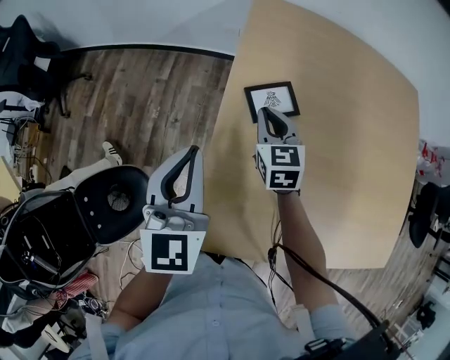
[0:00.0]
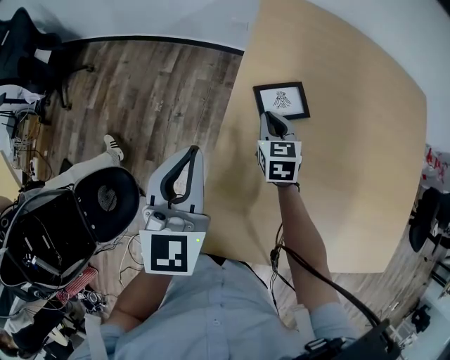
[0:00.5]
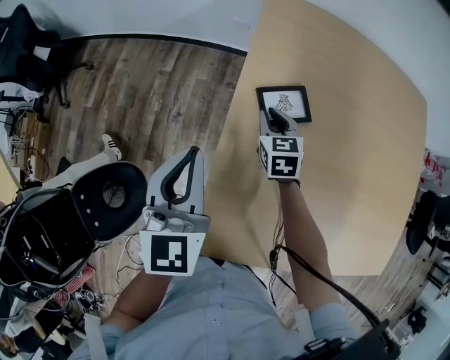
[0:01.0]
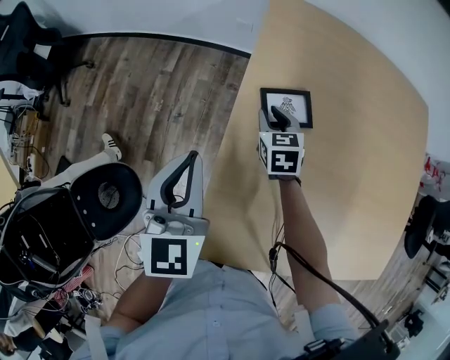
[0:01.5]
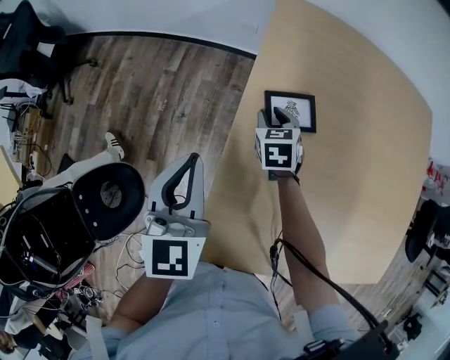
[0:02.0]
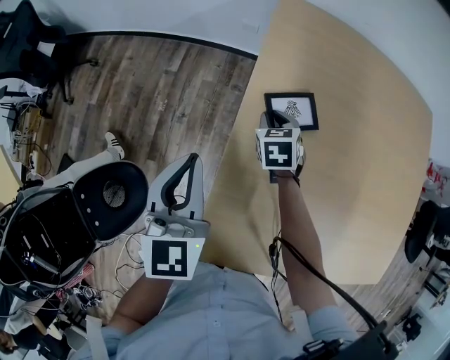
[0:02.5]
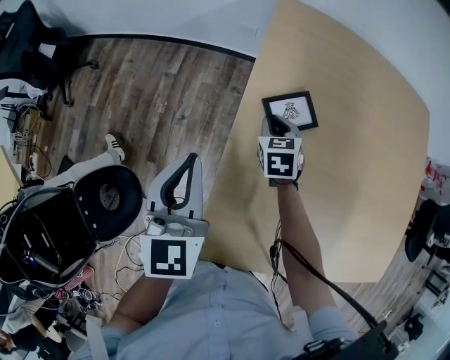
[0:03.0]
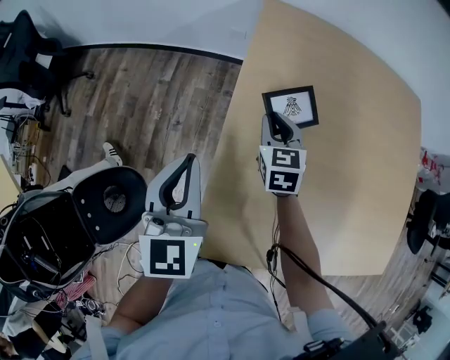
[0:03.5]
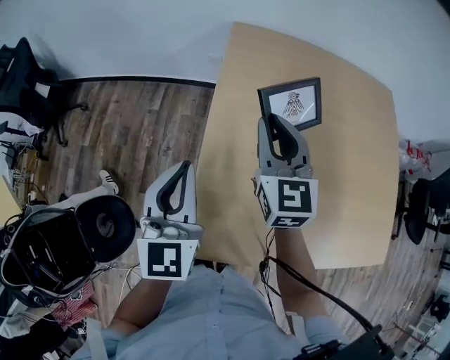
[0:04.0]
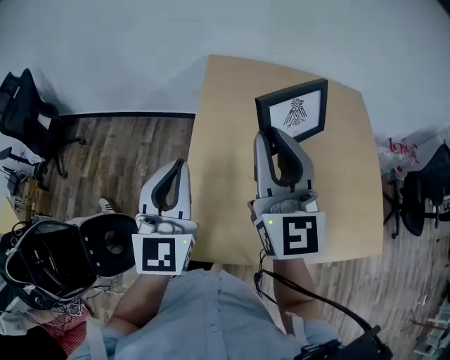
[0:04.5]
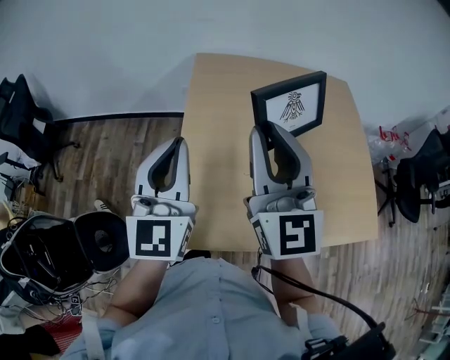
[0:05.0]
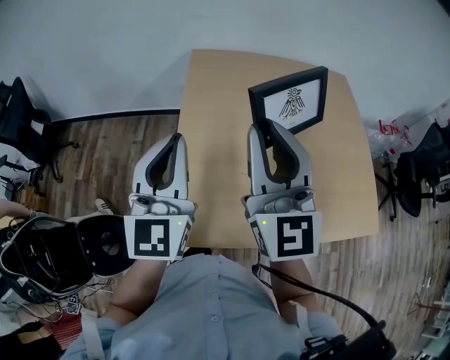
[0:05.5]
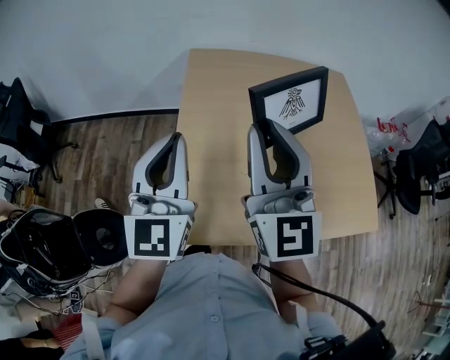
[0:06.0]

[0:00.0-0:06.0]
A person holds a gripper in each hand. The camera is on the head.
0:00.0 to 0:02.0: The right gripper moves downward, about 10 cm, and opens its fingers.
0:02.0 to 0:04.0: The right gripper moves upward, approximately 25 cm, and tips its fingers upward by roughly 40 degrees; the left gripper moves upward, roughly 5 cm.
0:04.0 to 0:06.0: The left gripper shifts about 15 cm upward and to the right, and rotates some 20 degrees, while the right gripper goes approximately 25 cm backward and upward, and turns by about 20 degrees.

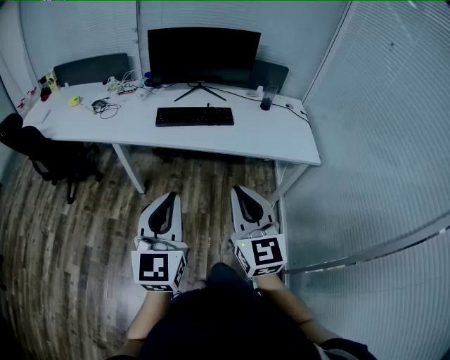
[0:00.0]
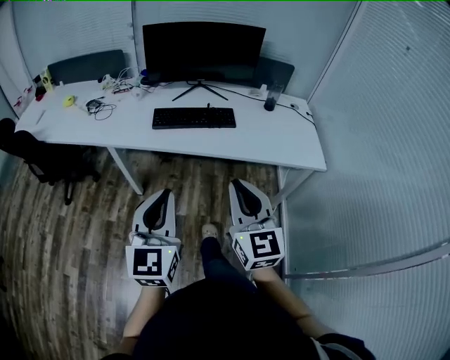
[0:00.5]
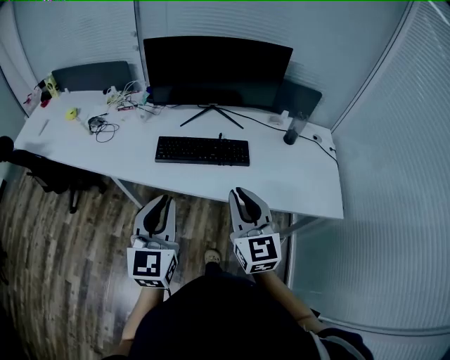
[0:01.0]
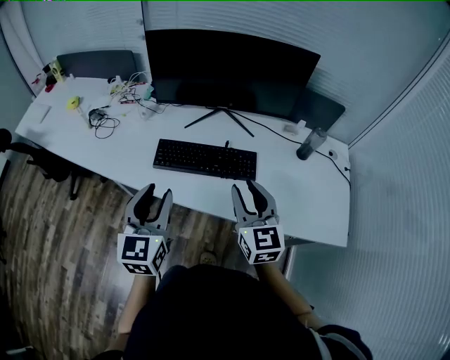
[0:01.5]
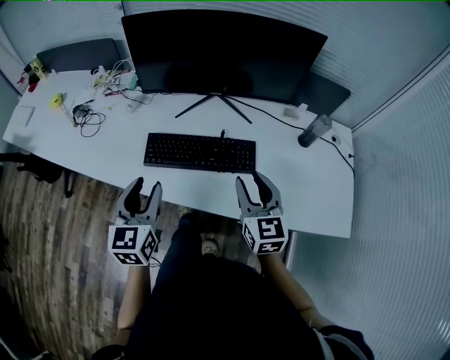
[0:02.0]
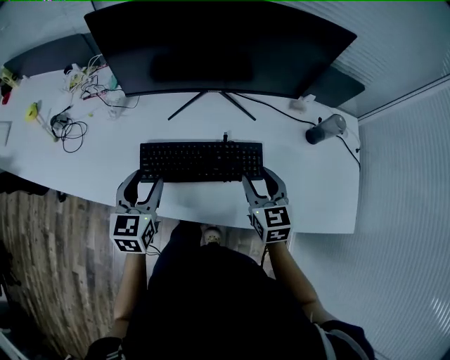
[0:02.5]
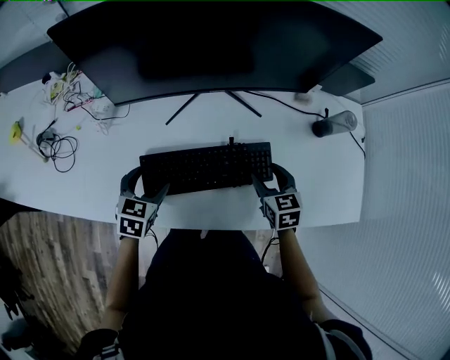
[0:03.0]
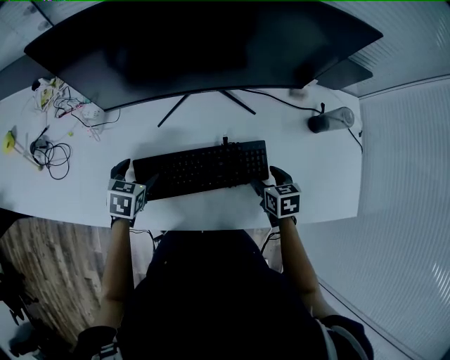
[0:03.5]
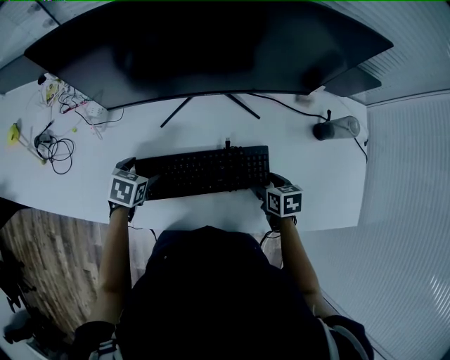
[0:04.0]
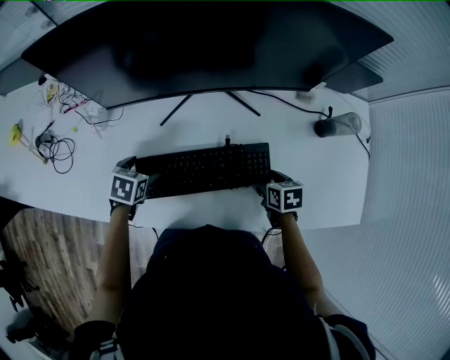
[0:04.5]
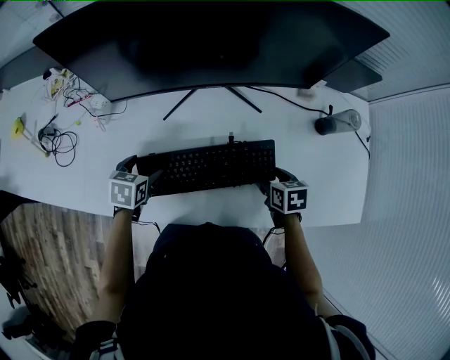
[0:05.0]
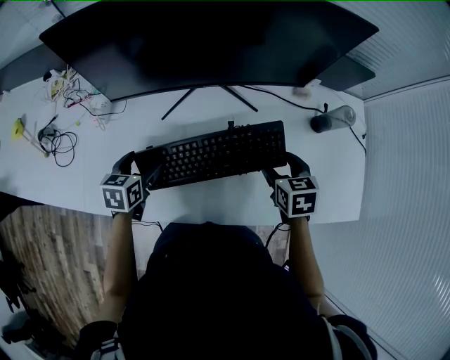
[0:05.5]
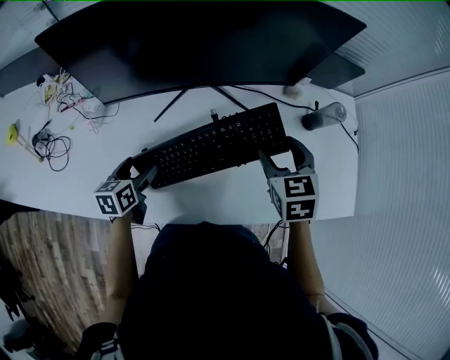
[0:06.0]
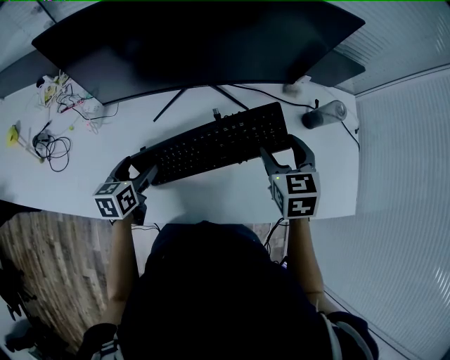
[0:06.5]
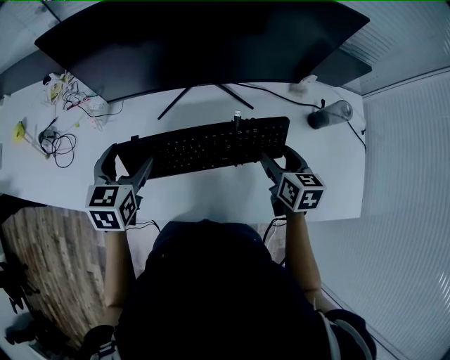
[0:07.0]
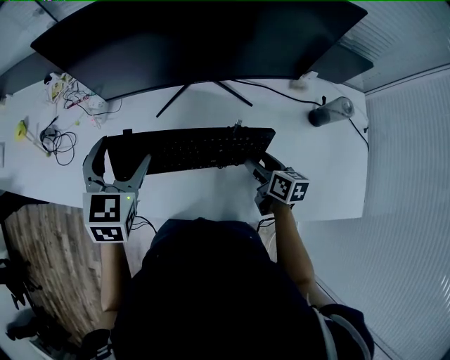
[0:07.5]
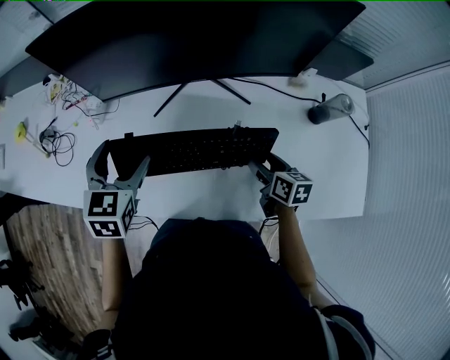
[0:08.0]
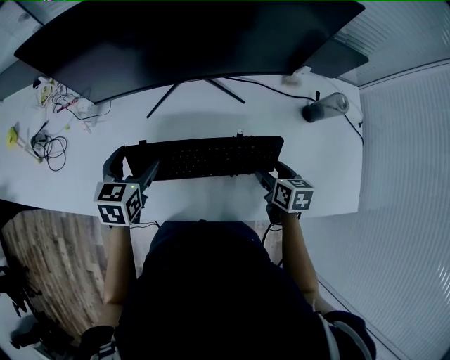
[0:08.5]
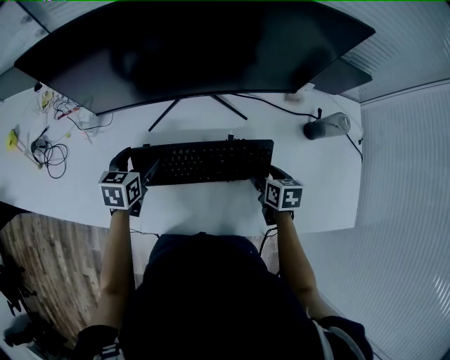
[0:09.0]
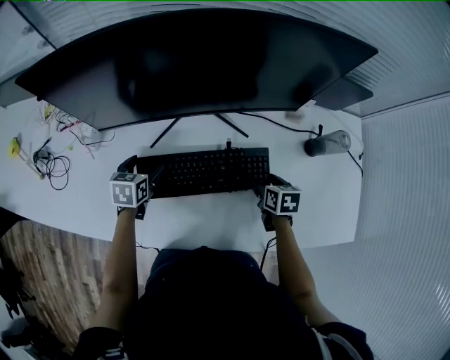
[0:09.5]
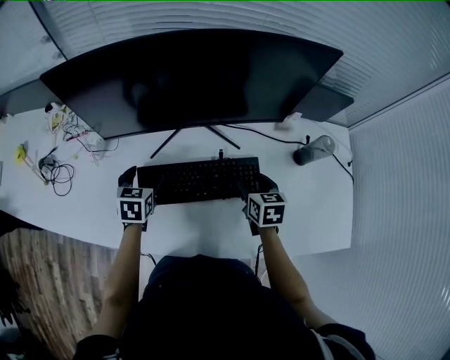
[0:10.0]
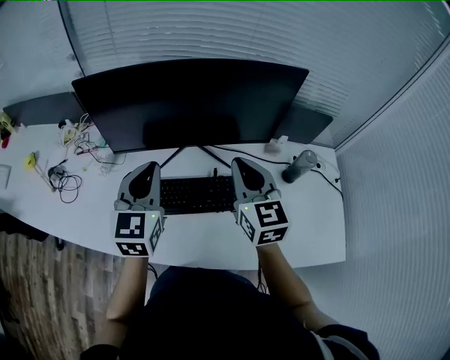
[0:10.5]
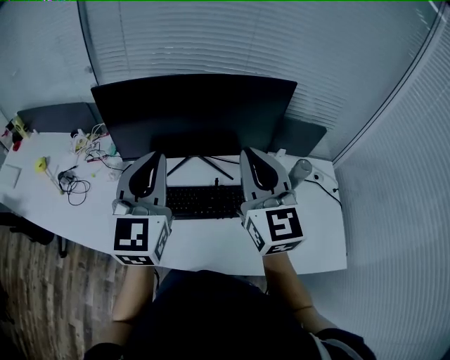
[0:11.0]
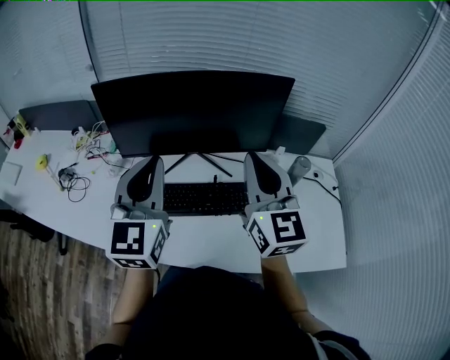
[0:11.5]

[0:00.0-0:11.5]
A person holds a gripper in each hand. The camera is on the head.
0:00.0 to 0:02.0: The pair of grippers is taken forward, some 50 cm. The left gripper rotates roughly 20 degrees. Meanwhile the right gripper opens up.
0:02.0 to 0:04.0: Both grippers move downward and forward, roughly 30 cm. The left gripper tips its fingers downward by about 50 degrees, and opens its fingers; the right gripper angles its fingers downward, by approximately 40 degrees, and opens up.
0:04.0 to 0:06.0: The right gripper is displaced upward by about 20 cm, and changes its angle by some 30 degrees. The left gripper travels upward by some 5 cm, and rotates approximately 30 degrees.
0:06.0 to 0:07.5: The right gripper shifts roughly 15 cm downward, and rotates around the line of its fingers by some 40 degrees, clockwise from behind, while the left gripper goes approximately 20 cm upward, and rotates roughly 40 degrees.
0:07.5 to 0:09.5: The left gripper goes some 20 cm downward, and turns by approximately 30 degrees. The right gripper is displaced to the right and downward by about 5 cm, and swivels some 30 degrees.
0:09.5 to 0:11.5: The two grippers go roughly 40 cm upward. The right gripper angles its fingers upward, by some 60 degrees, and closes its fingers; the left gripper points its fingers about 50 degrees further upward, and closes.

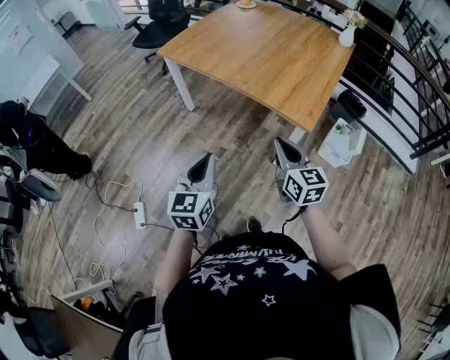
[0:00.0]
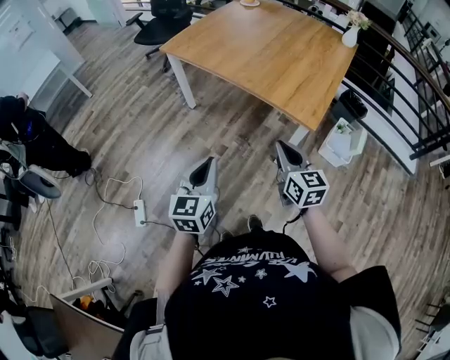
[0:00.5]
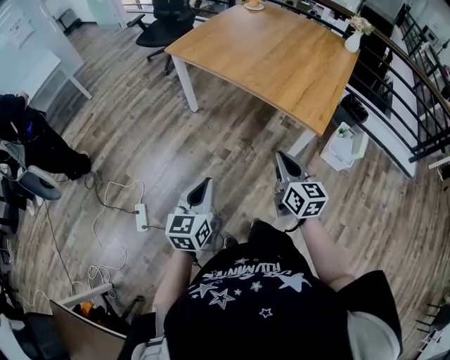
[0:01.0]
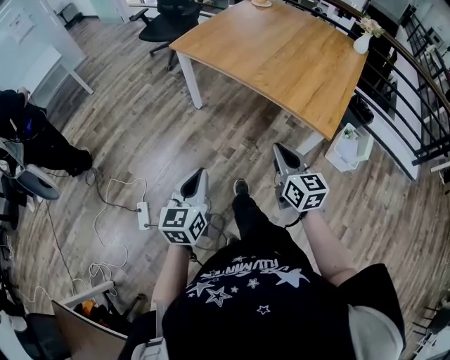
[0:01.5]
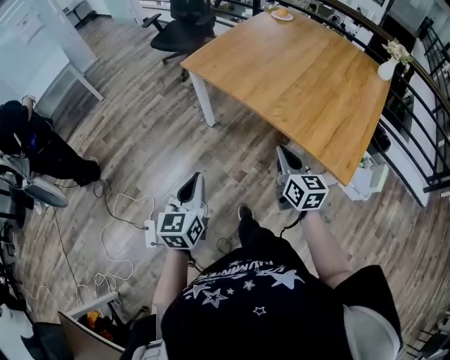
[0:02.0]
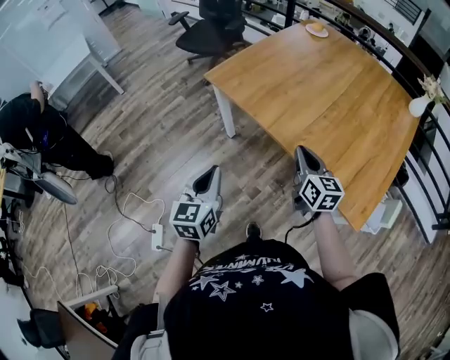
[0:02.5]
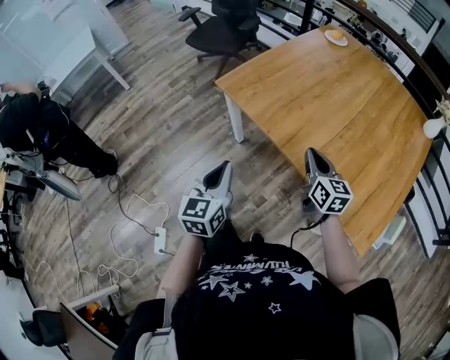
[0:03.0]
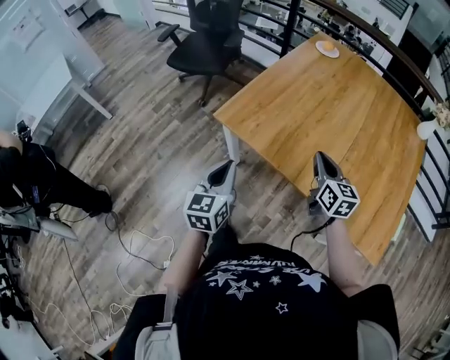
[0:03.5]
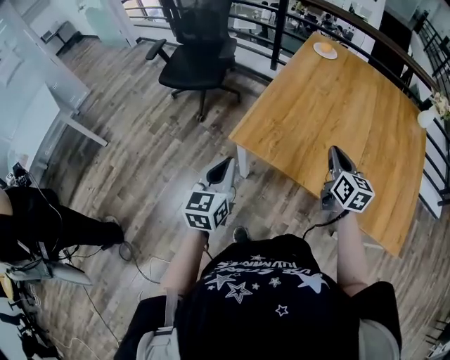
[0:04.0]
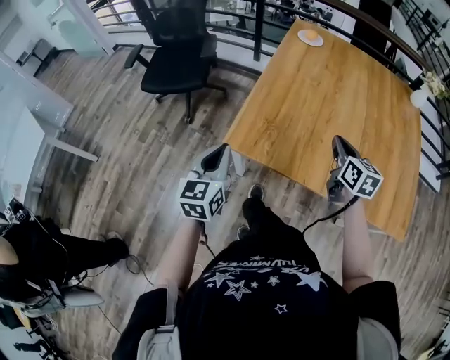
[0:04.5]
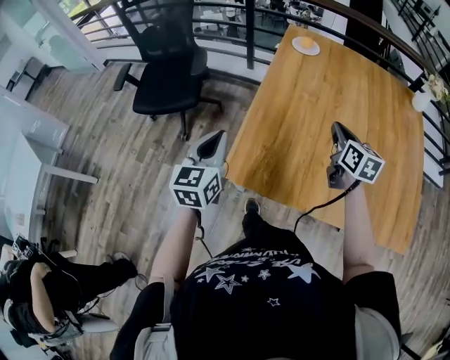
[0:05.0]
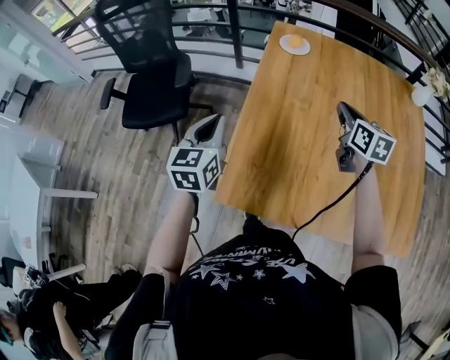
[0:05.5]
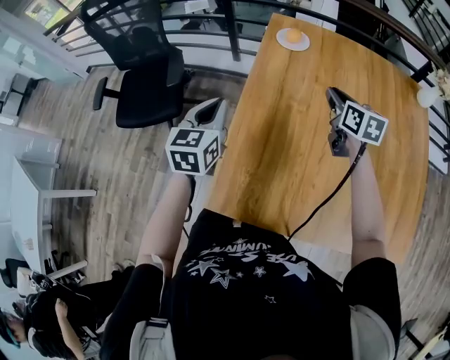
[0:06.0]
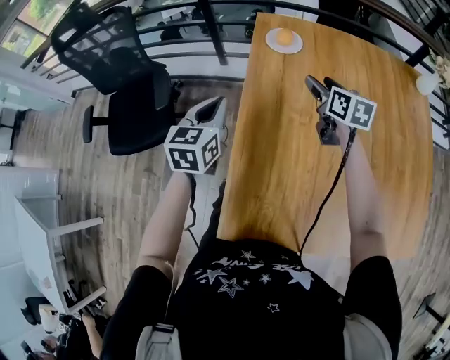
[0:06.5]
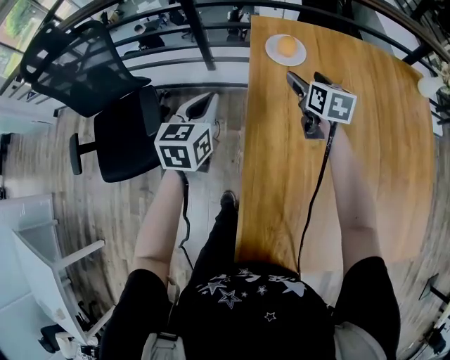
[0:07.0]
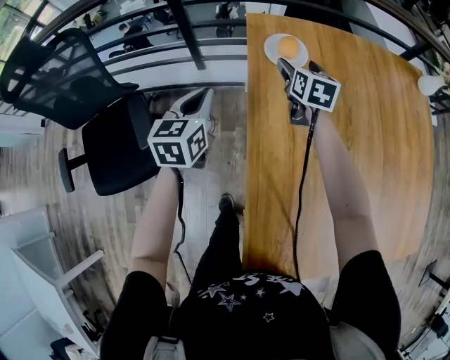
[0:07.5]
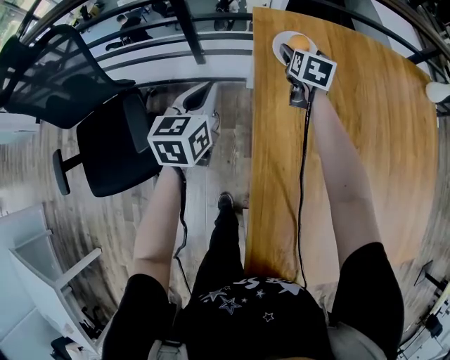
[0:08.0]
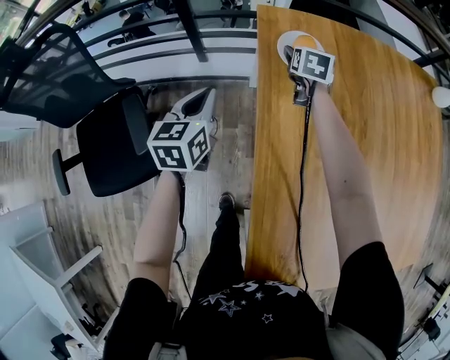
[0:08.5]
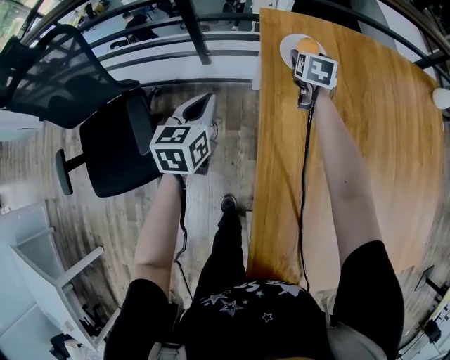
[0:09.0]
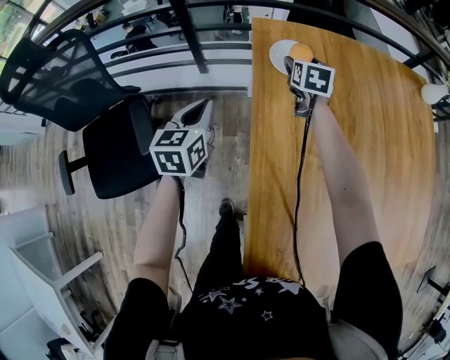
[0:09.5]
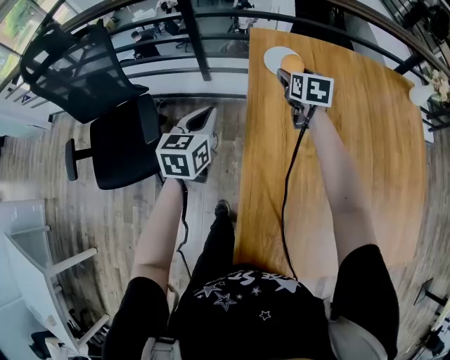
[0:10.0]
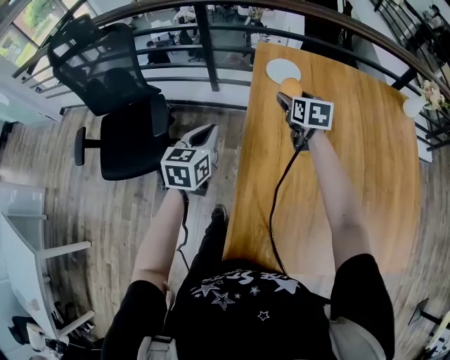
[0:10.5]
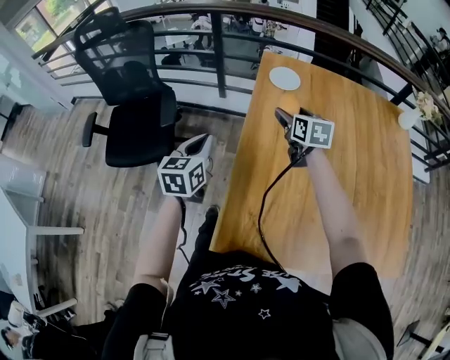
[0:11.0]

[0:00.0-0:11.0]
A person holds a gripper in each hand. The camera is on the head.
0:00.0 to 0:02.0: Both grippers travel together forward and to the left, about 25 cm.
0:02.0 to 0:03.5: The two grippers go roughly 35 cm forward.
0:03.5 to 0:05.5: Both grippers move forward, about 35 cm. The left gripper rotates approximately 20 degrees. Meanwhile the right gripper swivels roughly 20 degrees.
0:05.5 to 0:07.5: Both grippers move forward, about 35 cm. The right gripper turns by roughly 20 degrees, and opens up.
0:07.5 to 0:09.0: The left gripper goes roughly 5 cm downward. Meanwhile the right gripper is displaced forward and downward by roughly 10 cm.
0:09.0 to 0:11.0: The right gripper shifts some 35 cm backward and upward, and swivels some 30 degrees. Meanwhile the left gripper moves backward, approximately 30 cm.
